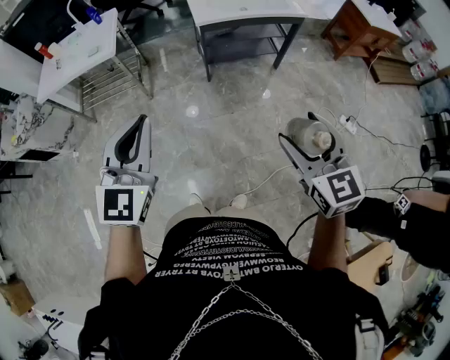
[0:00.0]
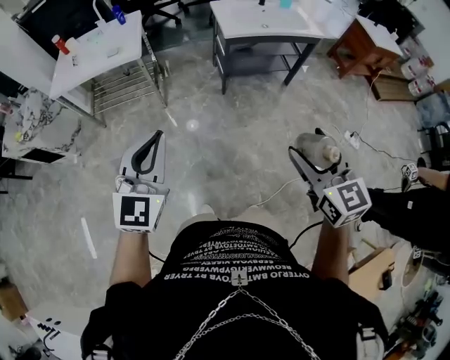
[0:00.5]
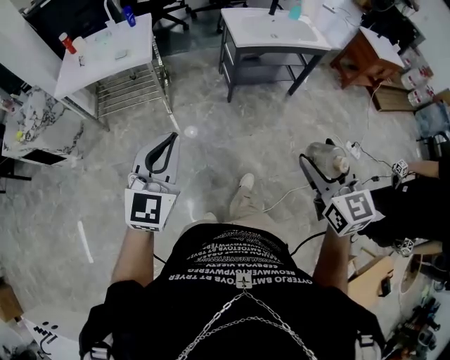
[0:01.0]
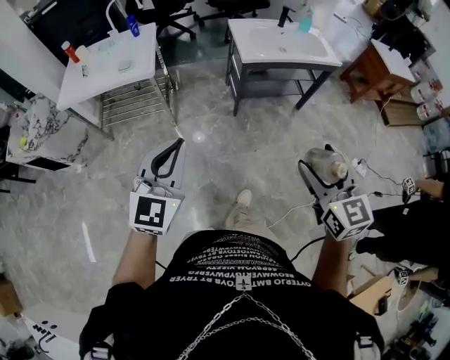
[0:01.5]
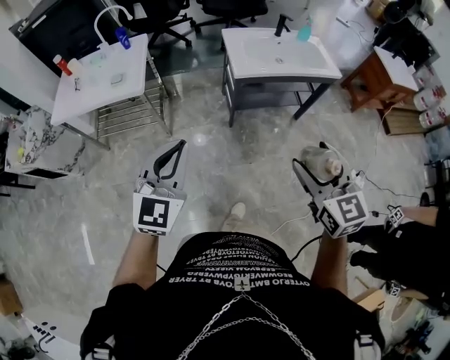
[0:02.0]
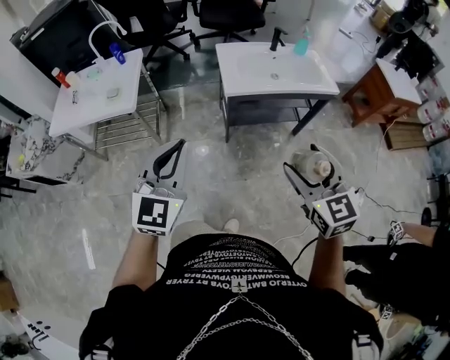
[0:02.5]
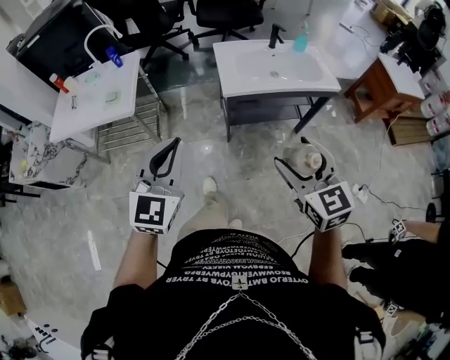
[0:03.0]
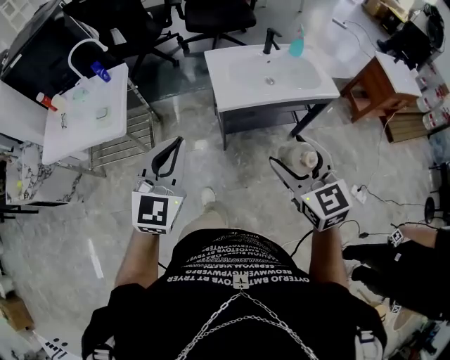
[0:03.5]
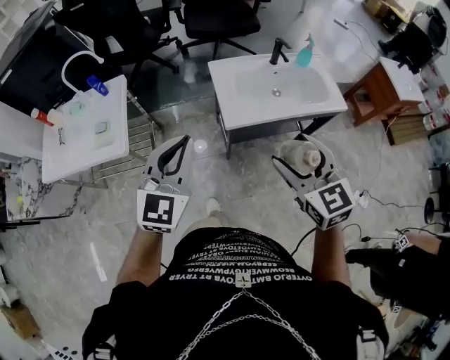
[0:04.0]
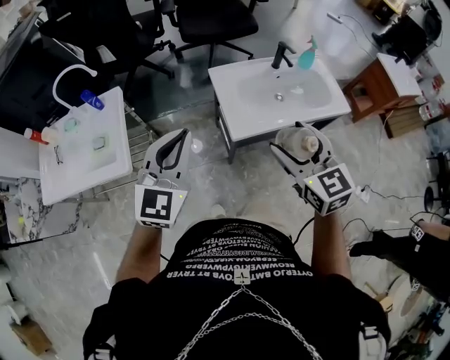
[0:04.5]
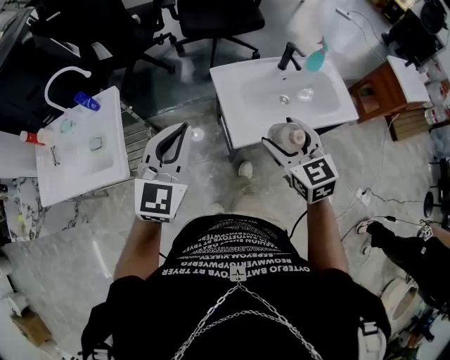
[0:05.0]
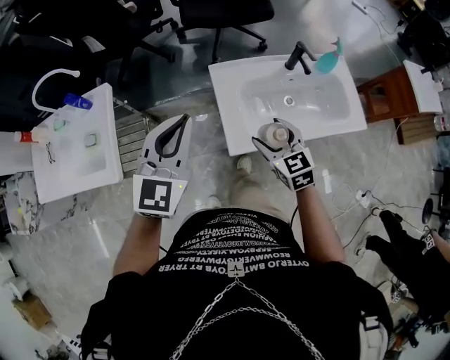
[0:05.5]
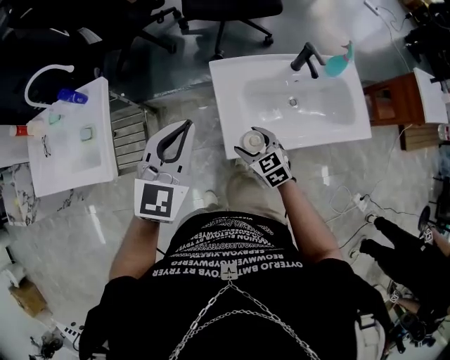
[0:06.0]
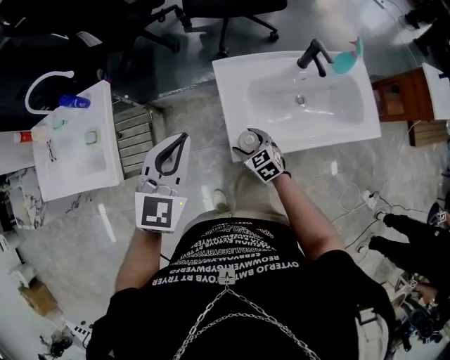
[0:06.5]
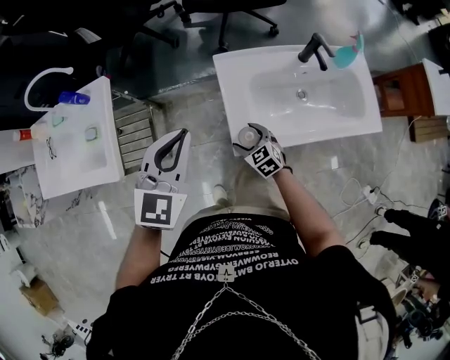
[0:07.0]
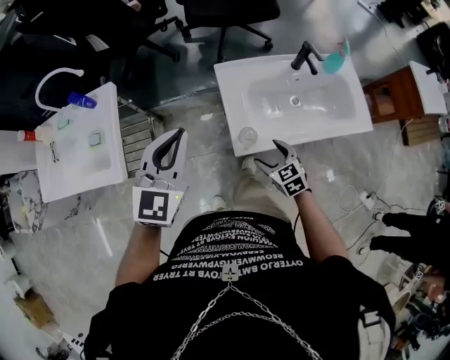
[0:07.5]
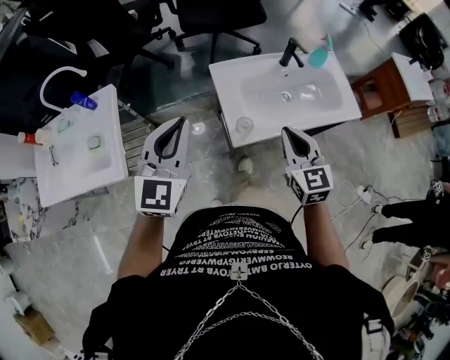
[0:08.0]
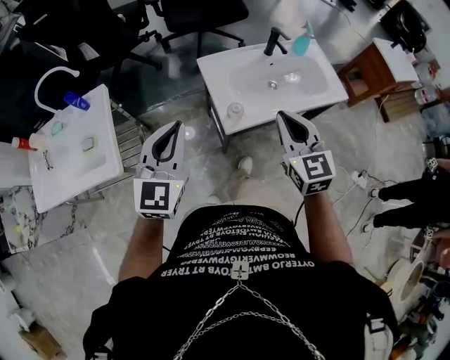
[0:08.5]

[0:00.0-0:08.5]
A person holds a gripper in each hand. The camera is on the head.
0.0 to 2.0 s: The right gripper heads forward and to the left, covering some 25 cm, while the left gripper shifts approximately 20 cm forward.
2.0 to 4.0 s: Both grippers move forward, about 35 cm.
4.0 to 6.5 s: The right gripper heads downward and forward, covering some 50 cm, and turns by roughly 30 degrees. Meanwhile the left gripper goes roughly 30 cm forward and downward.
6.5 to 8.5 s: The right gripper is displaced upward and backward by approximately 40 cm, rotates some 40 degrees, and closes up. The left gripper is displaced backward and upward by some 15 cm.

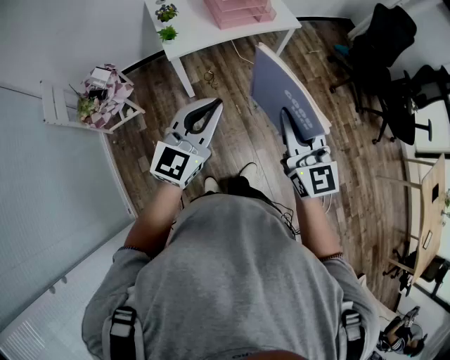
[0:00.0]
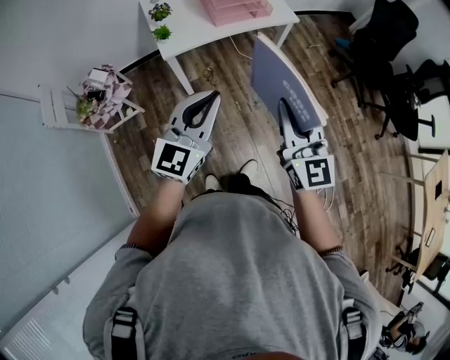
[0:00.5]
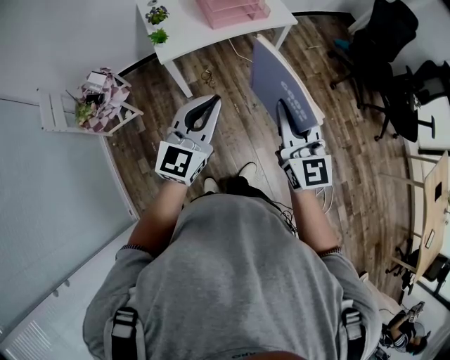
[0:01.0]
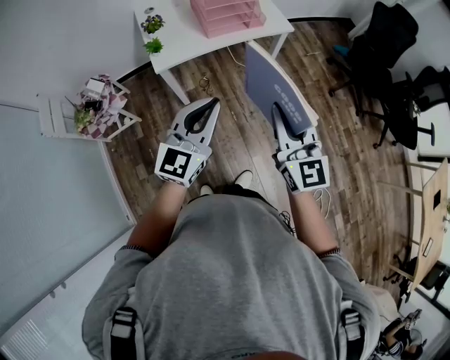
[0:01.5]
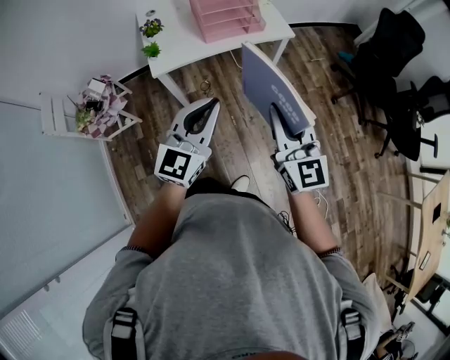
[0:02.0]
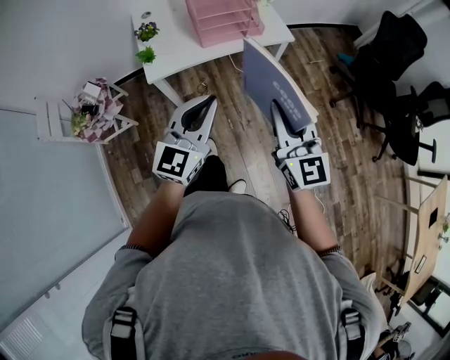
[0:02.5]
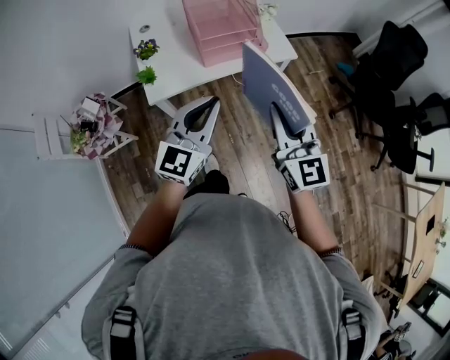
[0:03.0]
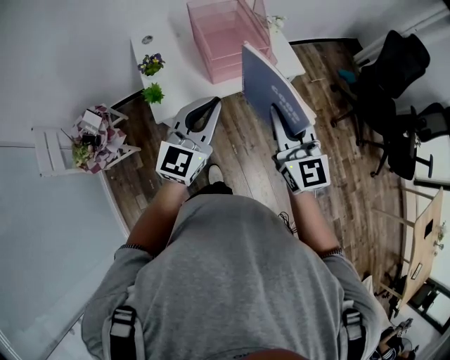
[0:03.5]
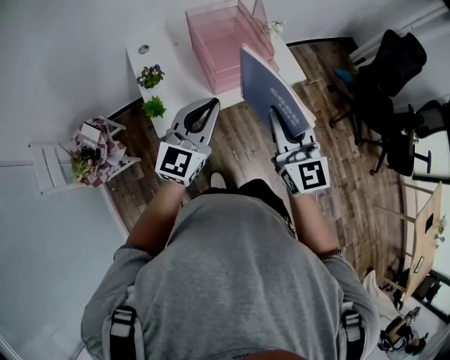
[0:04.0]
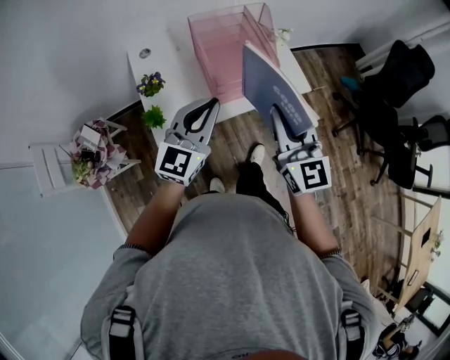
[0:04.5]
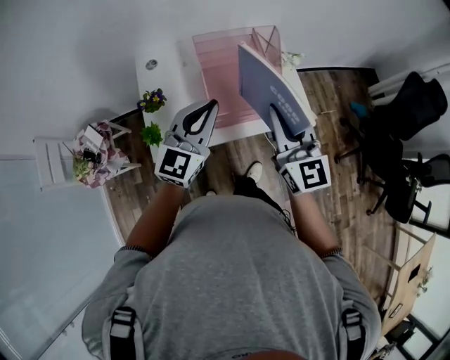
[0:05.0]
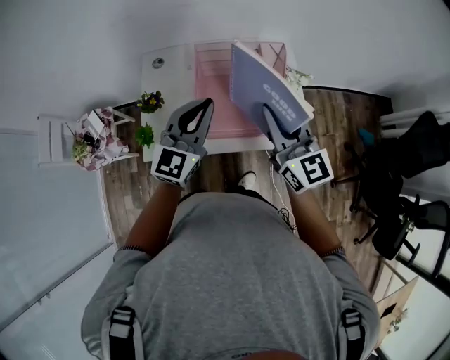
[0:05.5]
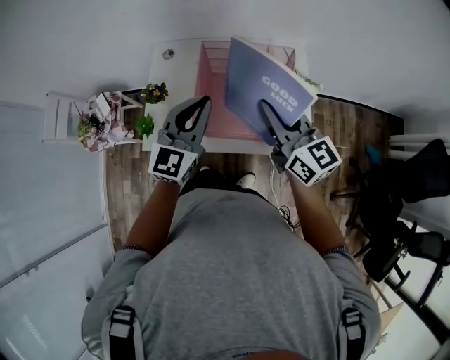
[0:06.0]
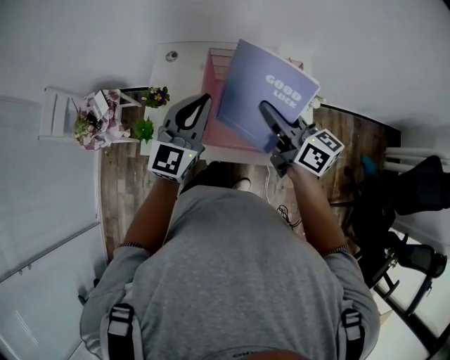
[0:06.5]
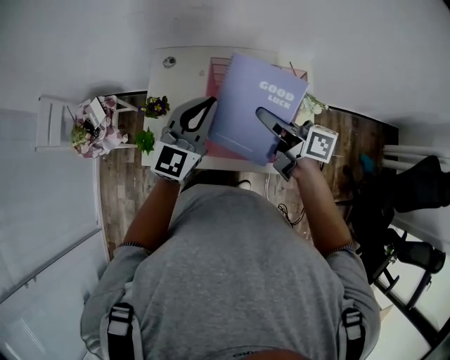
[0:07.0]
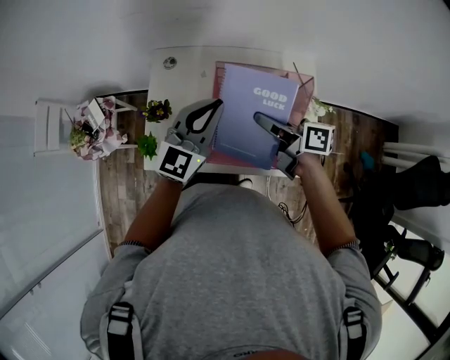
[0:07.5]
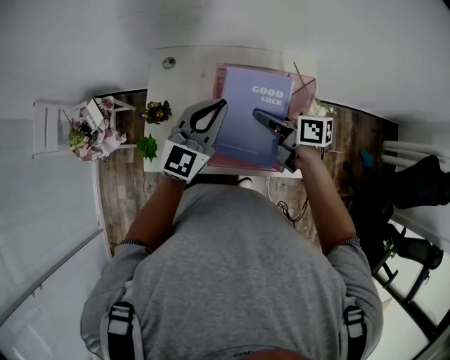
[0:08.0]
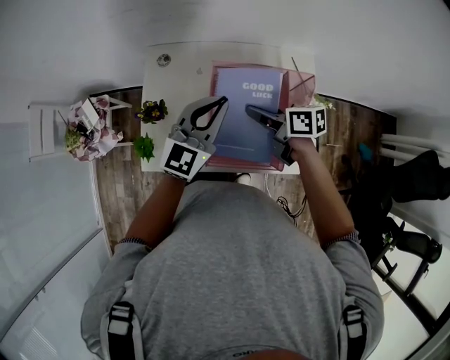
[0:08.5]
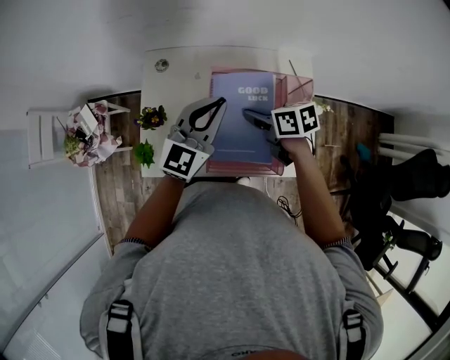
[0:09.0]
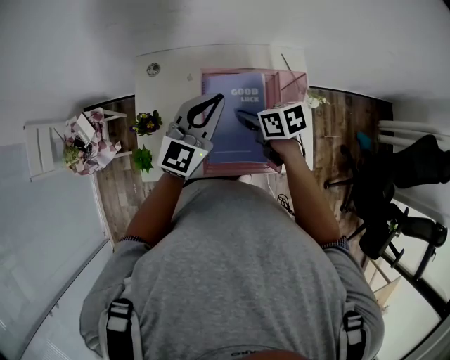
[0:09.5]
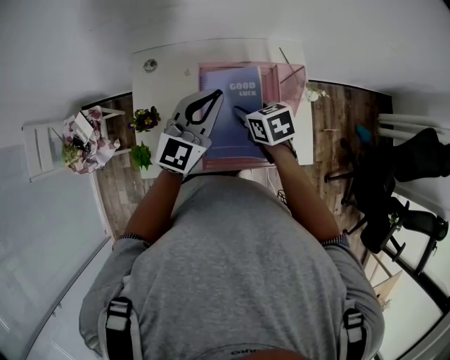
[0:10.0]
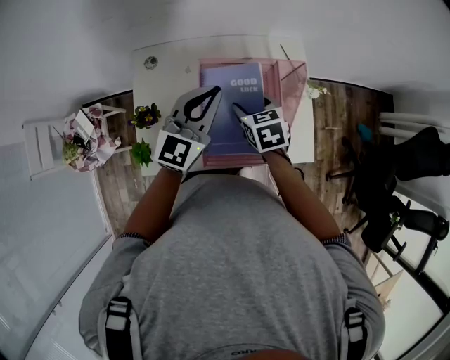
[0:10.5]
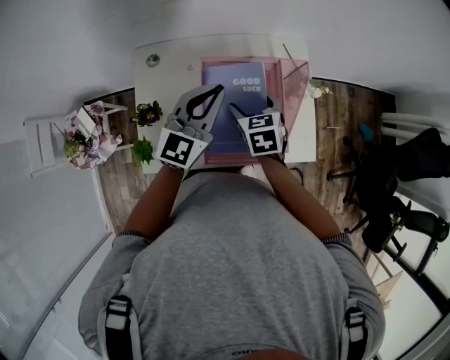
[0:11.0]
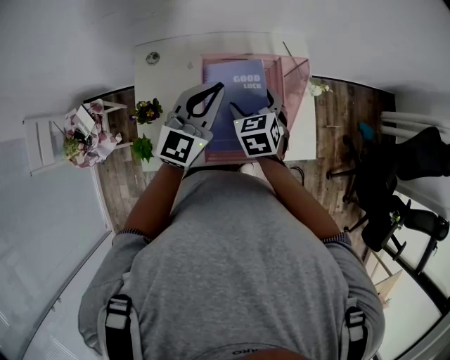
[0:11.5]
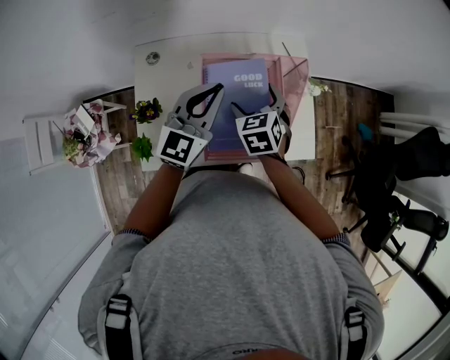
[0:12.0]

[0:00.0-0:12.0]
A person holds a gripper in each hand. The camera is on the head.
0.0 to 2.0 s: The grippers both shift forward and to the right by approximately 15 cm.
2.0 to 4.0 s: Both grippers travel together forward, about 30 cm.
4.0 to 6.0 s: The right gripper shifts by roughly 30 cm, and changes its angle by approximately 50 degrees. The left gripper shifts by about 25 cm, and turns by some 30 degrees.
6.0 to 8.0 s: The right gripper heads forward and downward, covering about 15 cm, and rotates around the line of its fingers by roughly 40 degrees, clockwise from behind, while the left gripper shifts about 10 cm forward.
8.0 to 10.0 s: The right gripper heads downward, covering roughly 5 cm, and points its fingers roughly 30 degrees further downward.
10.0 to 12.0 s: The right gripper swivels roughly 30 degrees, and opens its fingers.

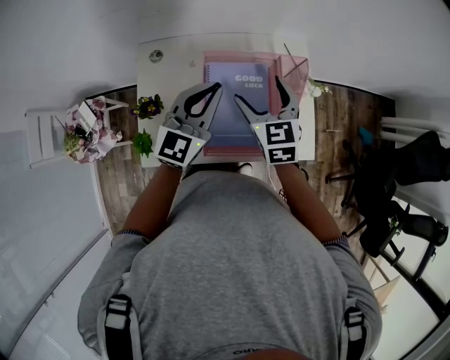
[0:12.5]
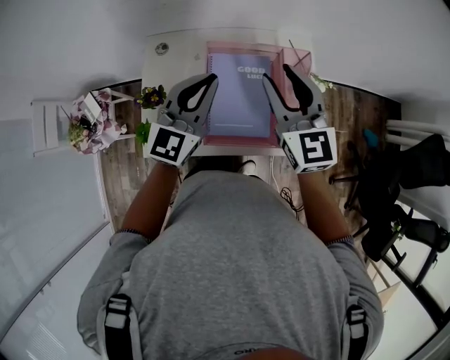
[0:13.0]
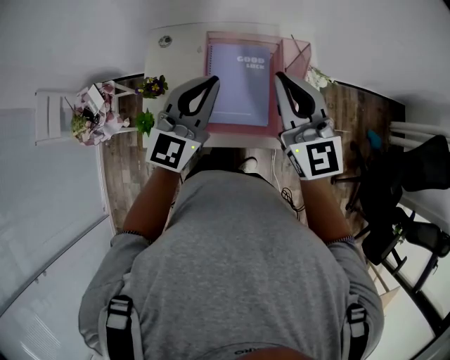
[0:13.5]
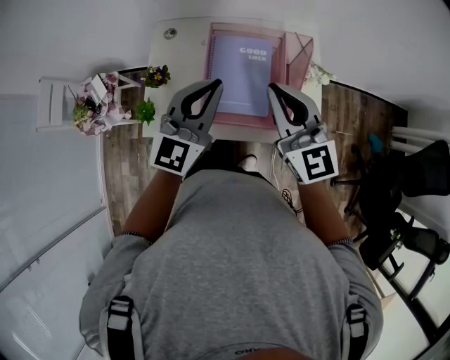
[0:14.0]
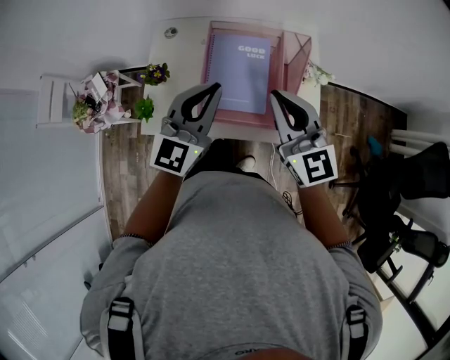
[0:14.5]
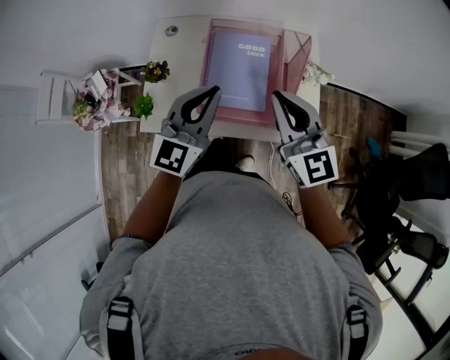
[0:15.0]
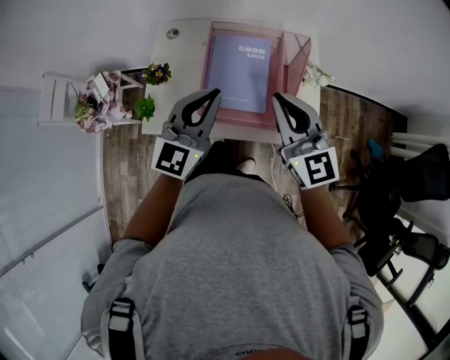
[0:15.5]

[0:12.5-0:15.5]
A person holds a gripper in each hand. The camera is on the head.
12.5 to 14.0 s: The right gripper goes approximately 15 cm backward and upward, changes its angle by about 30 degrees, and closes, while the left gripper heads backward, covering some 10 cm.
14.0 to 15.5 s: The grippers stay close to where they were, moving slightly.

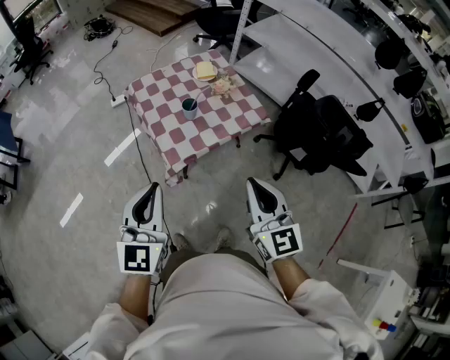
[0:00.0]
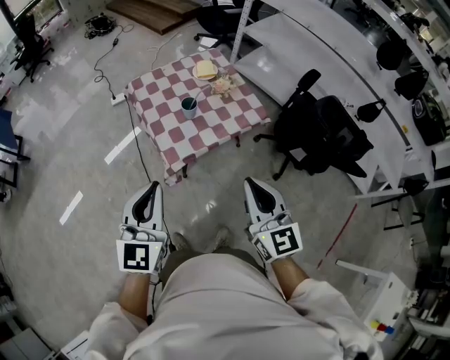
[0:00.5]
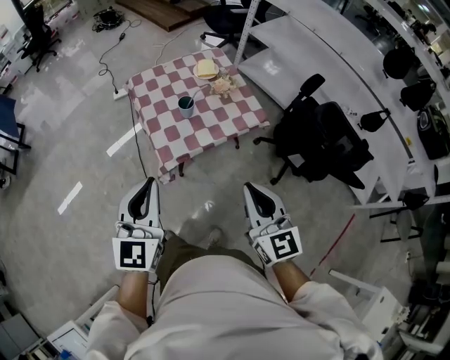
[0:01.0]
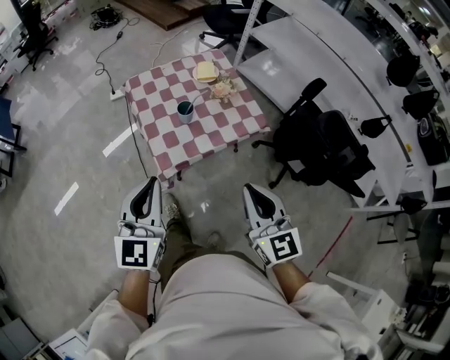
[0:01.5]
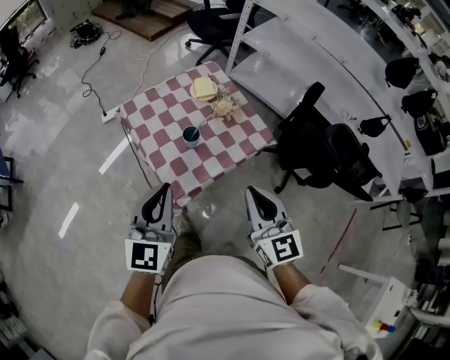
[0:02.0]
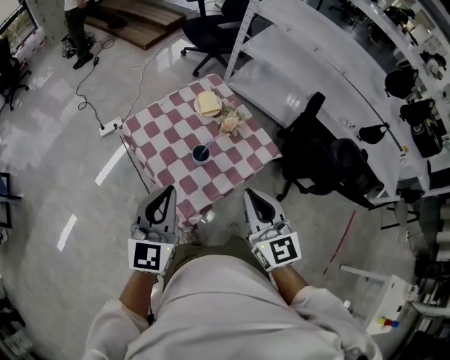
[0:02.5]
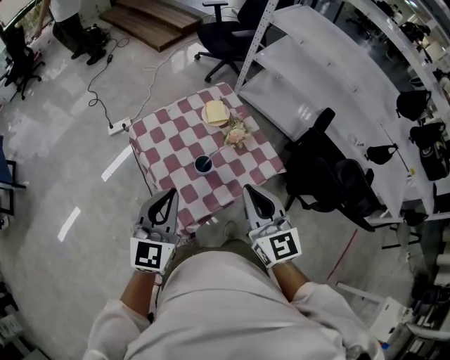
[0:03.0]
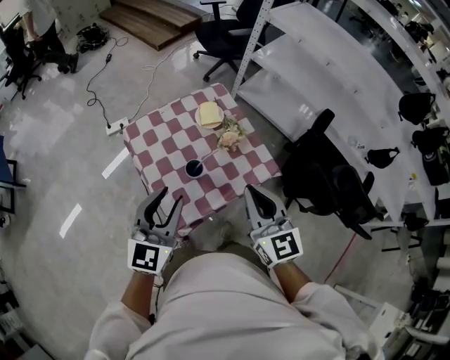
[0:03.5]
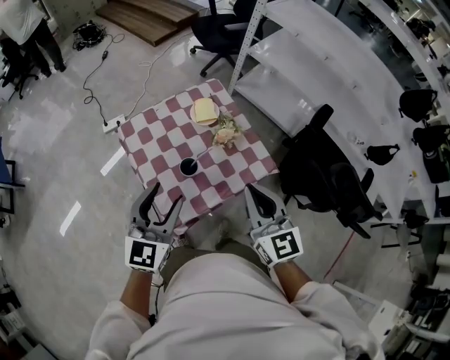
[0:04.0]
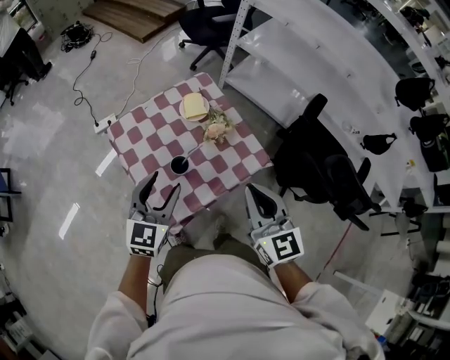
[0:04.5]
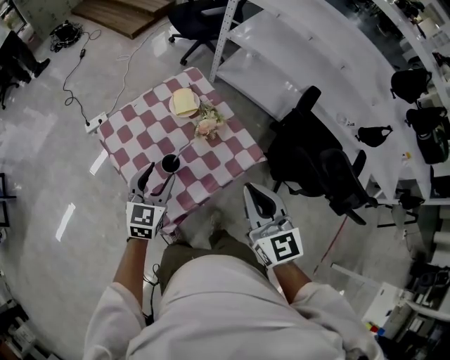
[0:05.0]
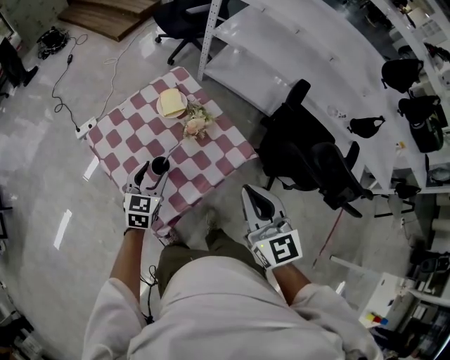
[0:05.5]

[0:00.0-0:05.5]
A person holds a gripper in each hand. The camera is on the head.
0.0 to 2.0 s: The grippers both shift forward by some 15 cm.
2.0 to 3.5 s: Both grippers travel together forward, about 15 cm. The left gripper opens.
3.5 to 5.5 s: The right gripper shifts approximately 10 cm to the right, while the left gripper heads downward and forward, covering roughly 20 cm, turns by approximately 20 degrees, and opens.
